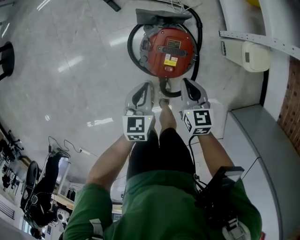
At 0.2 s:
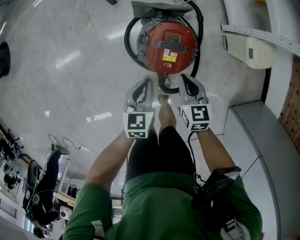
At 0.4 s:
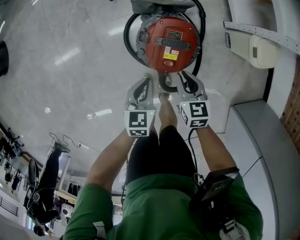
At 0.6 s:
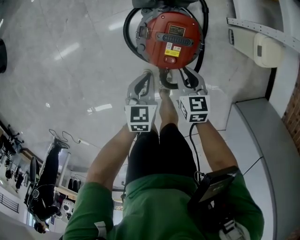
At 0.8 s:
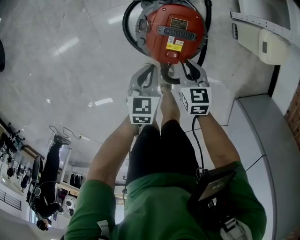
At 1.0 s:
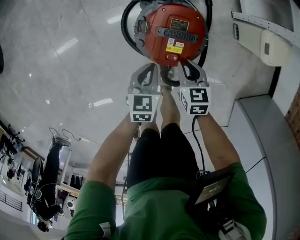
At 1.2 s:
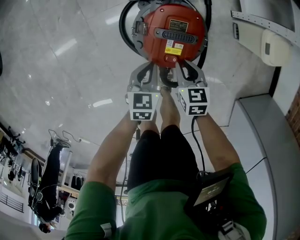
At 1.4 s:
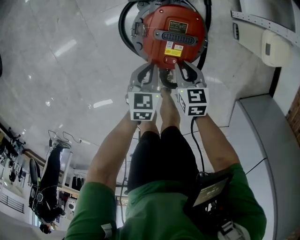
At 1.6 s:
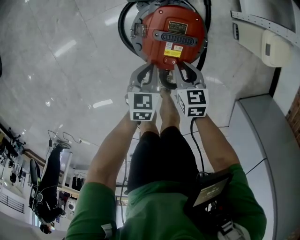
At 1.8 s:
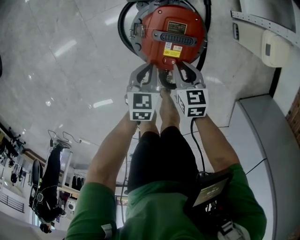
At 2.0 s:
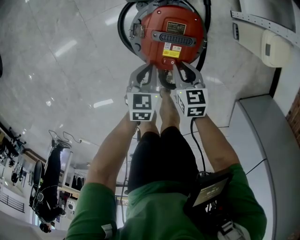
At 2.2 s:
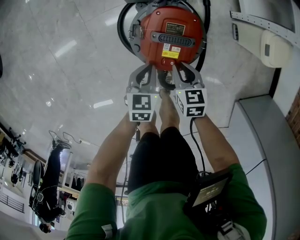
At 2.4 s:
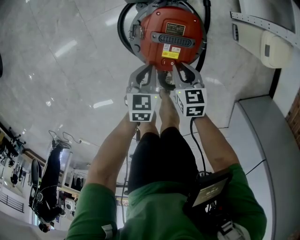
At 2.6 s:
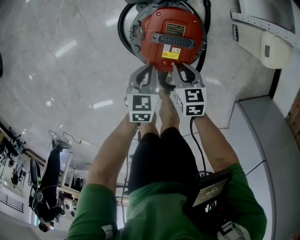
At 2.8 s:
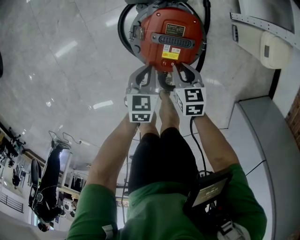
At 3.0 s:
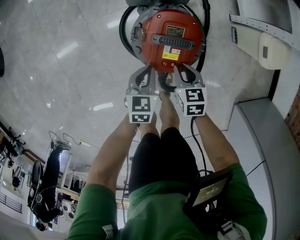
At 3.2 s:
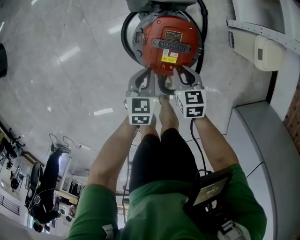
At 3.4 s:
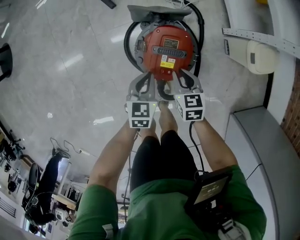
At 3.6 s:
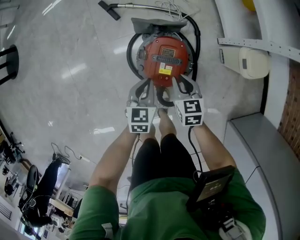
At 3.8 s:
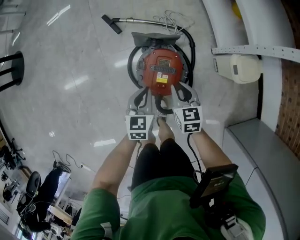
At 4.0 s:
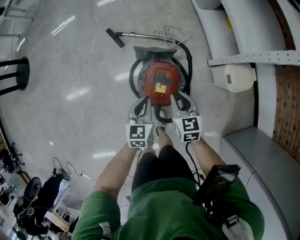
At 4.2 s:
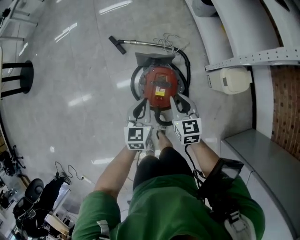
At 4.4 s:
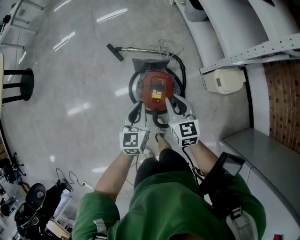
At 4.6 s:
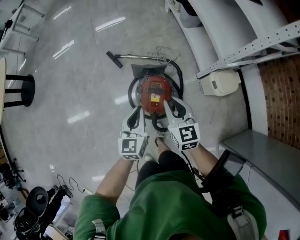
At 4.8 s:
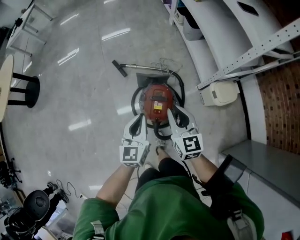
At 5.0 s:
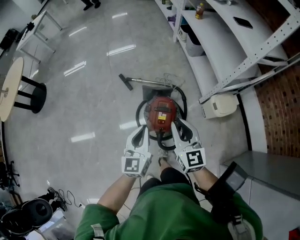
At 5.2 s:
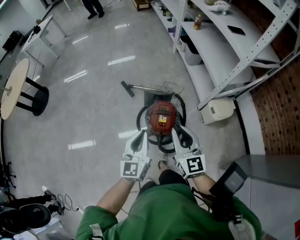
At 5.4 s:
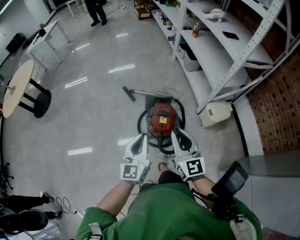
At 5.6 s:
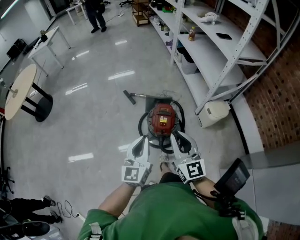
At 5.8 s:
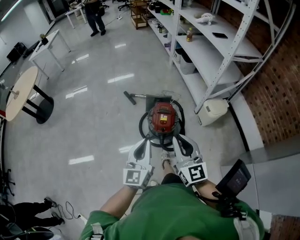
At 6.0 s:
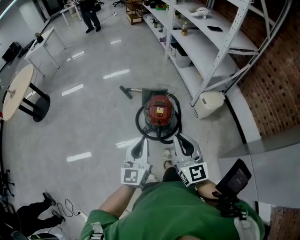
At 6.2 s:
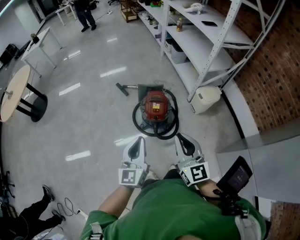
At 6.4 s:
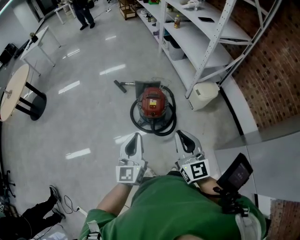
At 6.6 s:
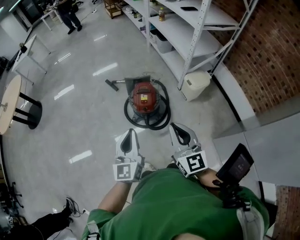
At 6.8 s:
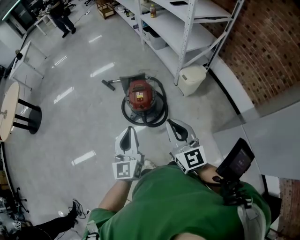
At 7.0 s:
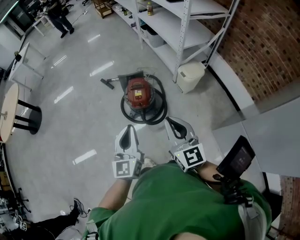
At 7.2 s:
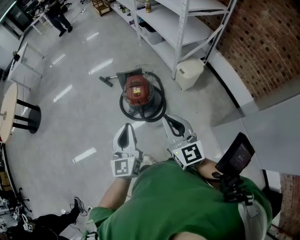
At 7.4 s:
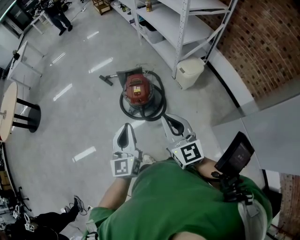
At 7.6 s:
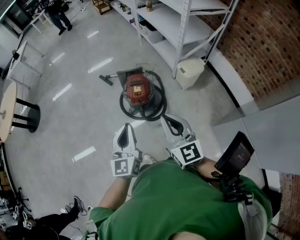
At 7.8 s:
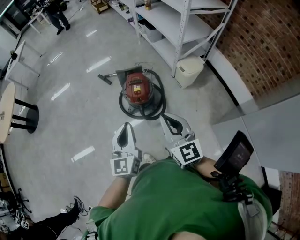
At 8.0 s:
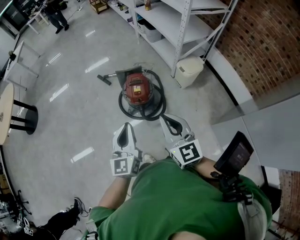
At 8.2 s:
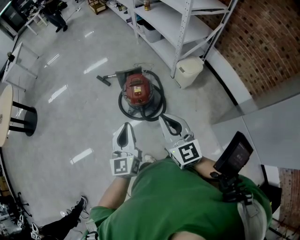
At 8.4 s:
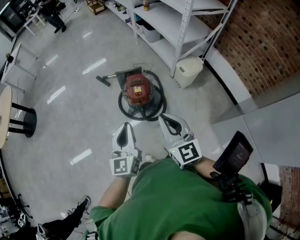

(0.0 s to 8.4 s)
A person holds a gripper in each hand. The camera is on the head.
0.0 s - 1.4 s: The two grippers go approximately 20 cm downward.
1.4 s - 2.8 s: Both grippers stay put.
2.8 s - 4.2 s: Both grippers move upward, roughly 30 cm. The right gripper swivels approximately 30 degrees. The left gripper changes its angle by about 20 degrees.
4.2 s - 5.6 s: Both grippers travel together upward and backward, about 40 cm. The left gripper angles its fingers upward, by approximately 30 degrees, while the right gripper angles its fingers upward, by some 30 degrees.
5.6 s - 7.0 s: Both grippers travel together backward and to the right, approximately 20 cm.
7.0 s - 8.4 s: Both grippers move to the left, roughly 5 cm.

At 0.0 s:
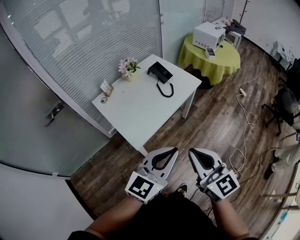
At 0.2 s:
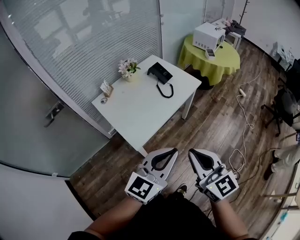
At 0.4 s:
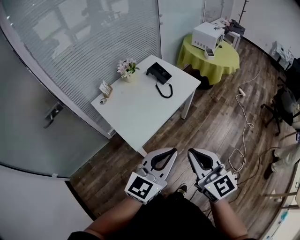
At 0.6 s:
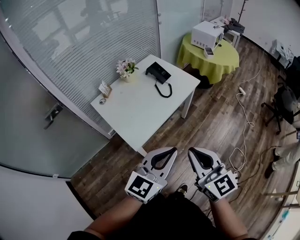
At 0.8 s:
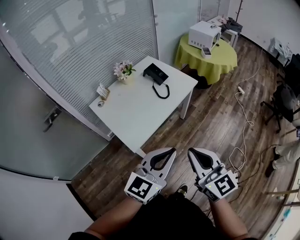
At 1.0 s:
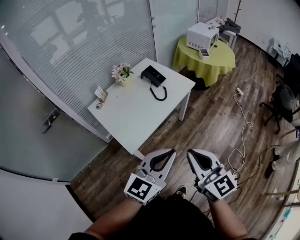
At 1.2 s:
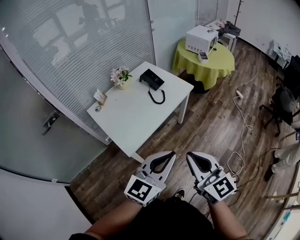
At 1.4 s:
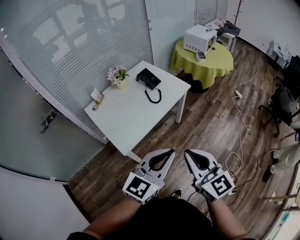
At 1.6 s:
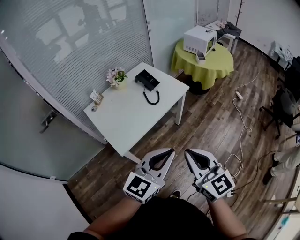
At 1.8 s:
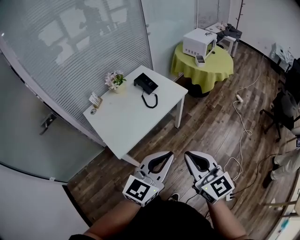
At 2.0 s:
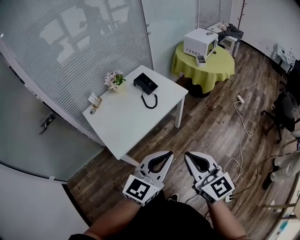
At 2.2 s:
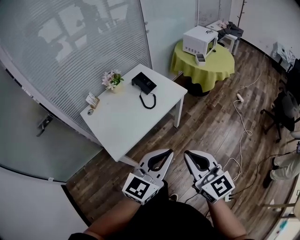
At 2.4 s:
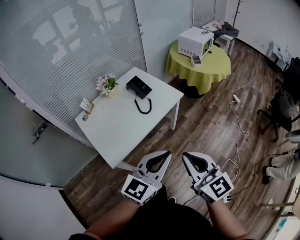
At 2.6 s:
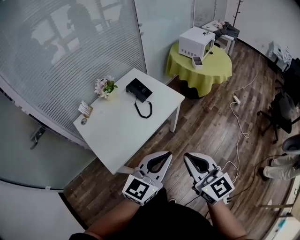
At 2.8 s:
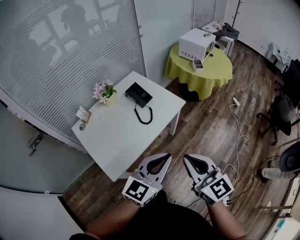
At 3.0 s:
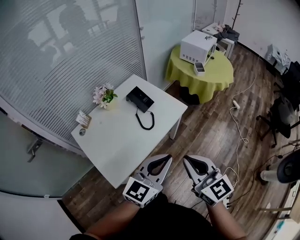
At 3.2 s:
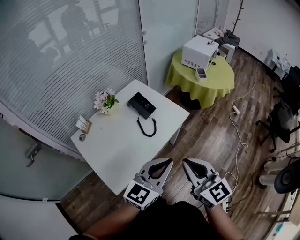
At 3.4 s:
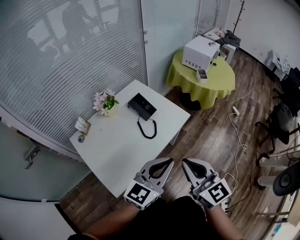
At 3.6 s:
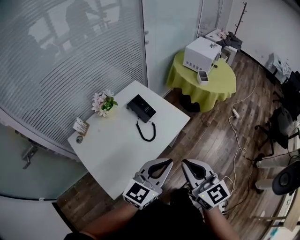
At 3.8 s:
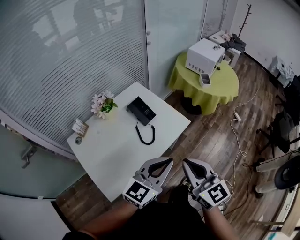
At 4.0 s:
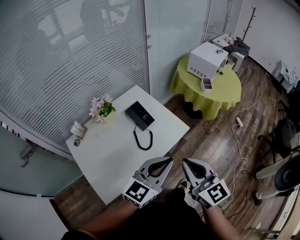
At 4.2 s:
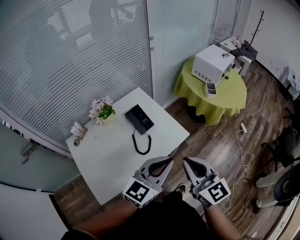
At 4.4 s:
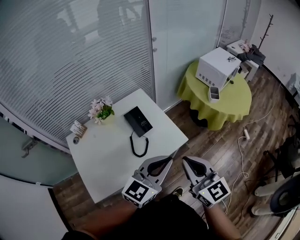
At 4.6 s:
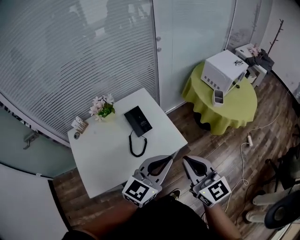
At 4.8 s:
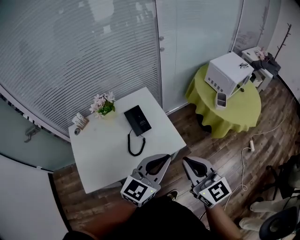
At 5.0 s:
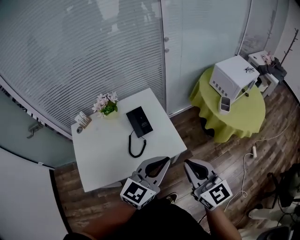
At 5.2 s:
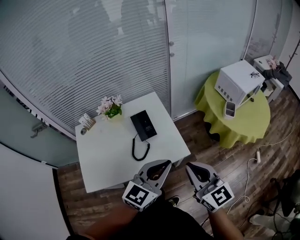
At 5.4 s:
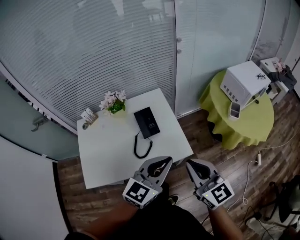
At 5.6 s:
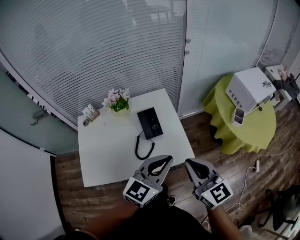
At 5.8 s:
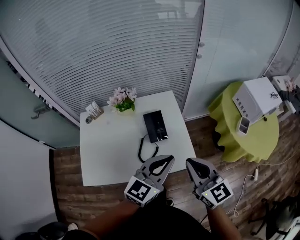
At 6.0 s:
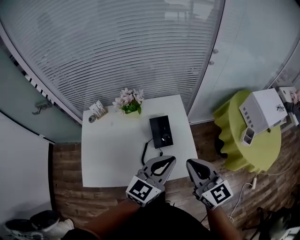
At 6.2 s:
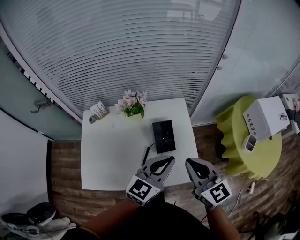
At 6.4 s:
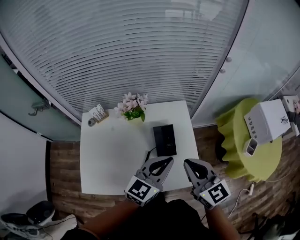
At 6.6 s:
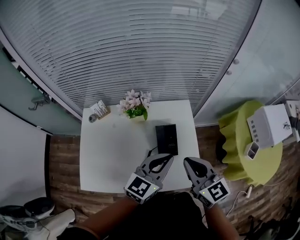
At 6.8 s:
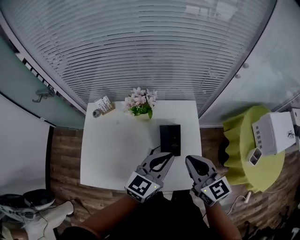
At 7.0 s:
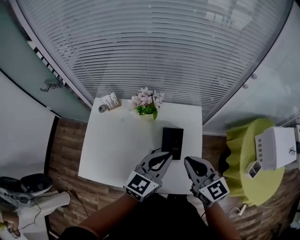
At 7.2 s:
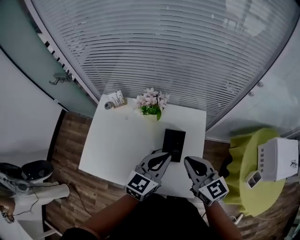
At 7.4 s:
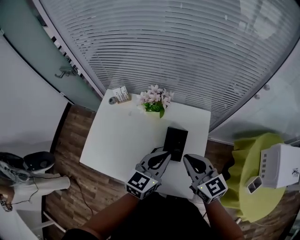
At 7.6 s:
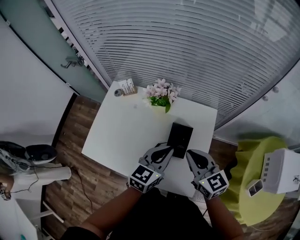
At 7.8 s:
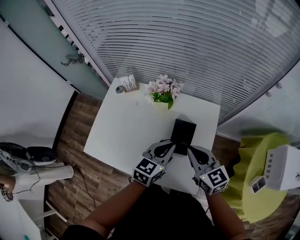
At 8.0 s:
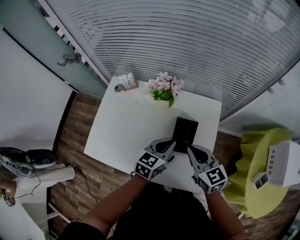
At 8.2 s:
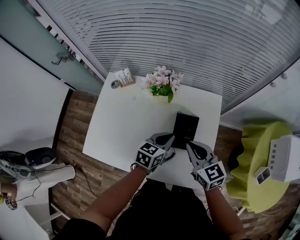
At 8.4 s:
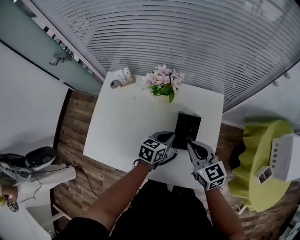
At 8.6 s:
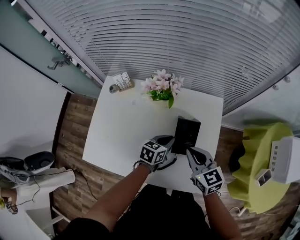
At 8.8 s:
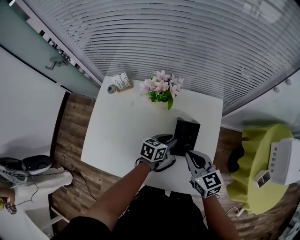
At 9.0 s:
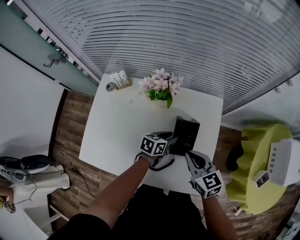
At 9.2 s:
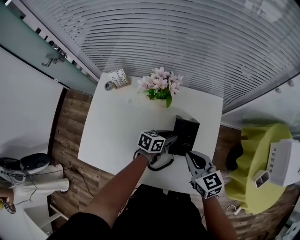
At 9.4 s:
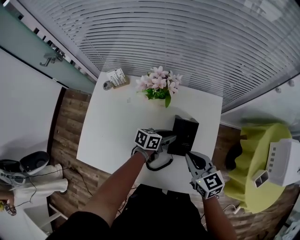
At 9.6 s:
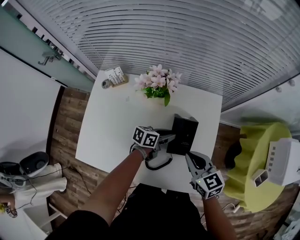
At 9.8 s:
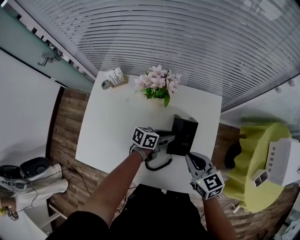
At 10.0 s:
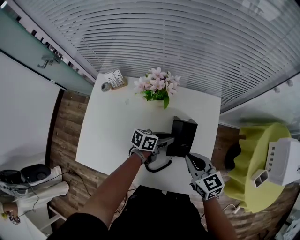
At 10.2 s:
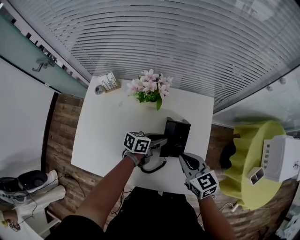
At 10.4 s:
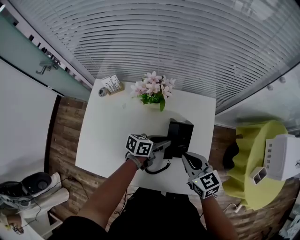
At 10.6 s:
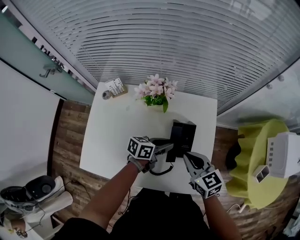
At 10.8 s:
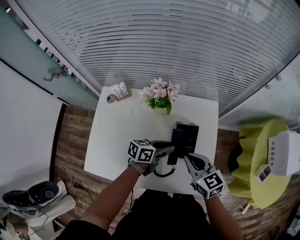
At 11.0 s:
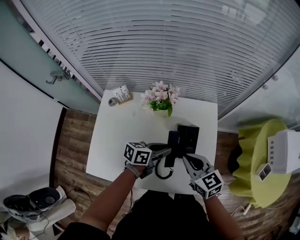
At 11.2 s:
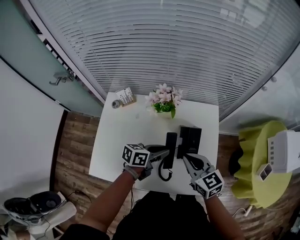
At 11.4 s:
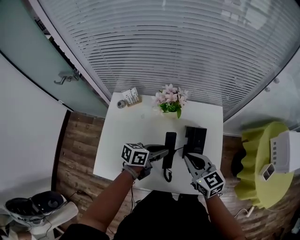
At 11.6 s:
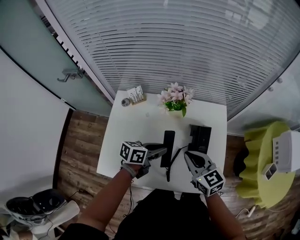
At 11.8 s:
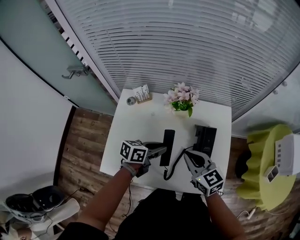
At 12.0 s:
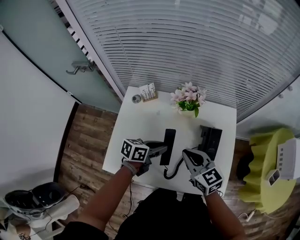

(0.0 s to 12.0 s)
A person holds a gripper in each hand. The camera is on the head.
0.0 s - 1.6 s: The two grippers go about 10 cm to the right.
1.6 s - 3.0 s: Both grippers move forward, about 20 cm.
3.0 s - 4.4 s: Both grippers travel together forward, approximately 25 cm.
4.4 s - 6.0 s: The right gripper moves some 20 cm, and swivels roughly 30 degrees, while the left gripper ends up some 15 cm from where it was, and swivels some 30 degrees.
6.0 s - 7.6 s: The left gripper ends up some 15 cm from where it was, and rotates approximately 30 degrees; the right gripper changes place by about 20 cm, and changes its angle by some 30 degrees.
7.6 s - 9.0 s: The right gripper heads downward, covering roughly 10 cm; the left gripper shifts approximately 25 cm downward, turns by some 40 degrees, and opens its fingers.
9.0 s - 10.4 s: The grippers stay close to where they were, moving slightly.
10.4 s - 12.0 s: The right gripper goes roughly 15 cm to the left; the left gripper shifts approximately 20 cm to the left and backward.

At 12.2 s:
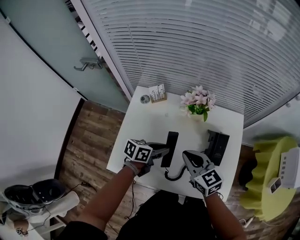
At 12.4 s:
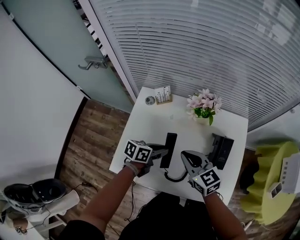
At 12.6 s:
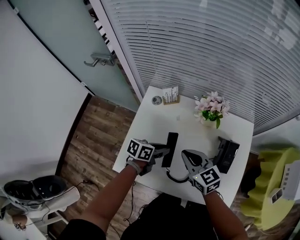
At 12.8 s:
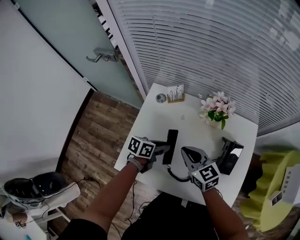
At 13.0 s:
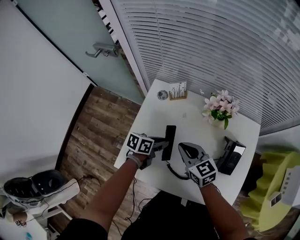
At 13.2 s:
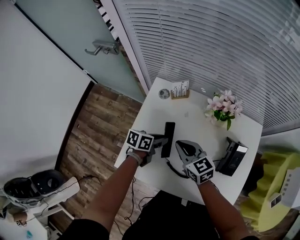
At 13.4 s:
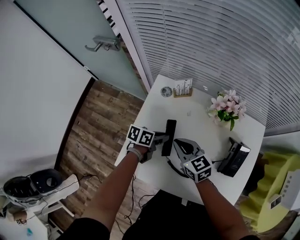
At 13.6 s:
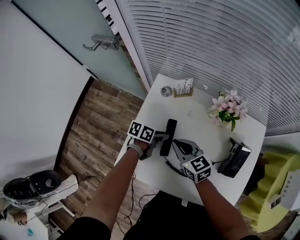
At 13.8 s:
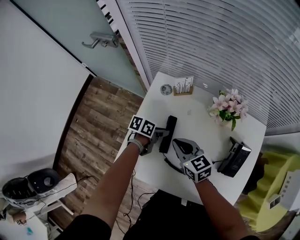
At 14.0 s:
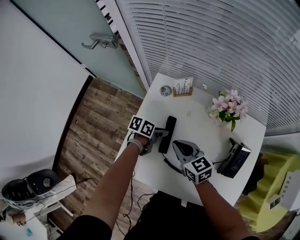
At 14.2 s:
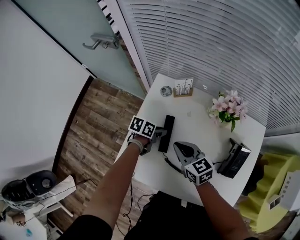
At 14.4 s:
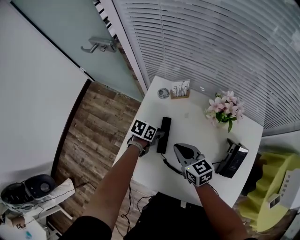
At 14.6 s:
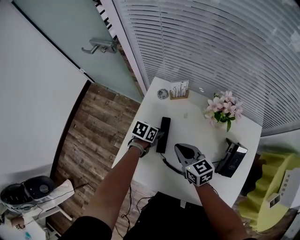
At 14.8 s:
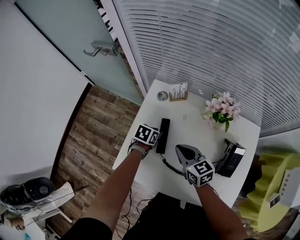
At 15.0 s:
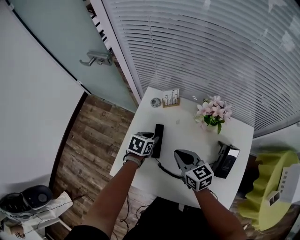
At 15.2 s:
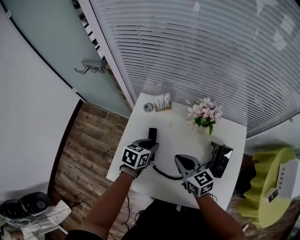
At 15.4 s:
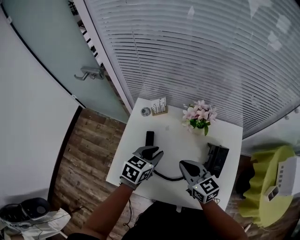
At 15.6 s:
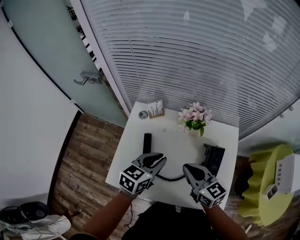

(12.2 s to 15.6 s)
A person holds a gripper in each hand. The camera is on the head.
12.2 s - 13.8 s: The left gripper shifts roughly 20 cm to the left, downward and forward, and changes its angle by some 20 degrees, while the right gripper moves to the left and downward, approximately 20 cm.
13.8 s - 15.6 s: The right gripper goes about 20 cm to the right, upward and backward. Meanwhile the left gripper shifts approximately 25 cm upward and to the right, and rotates around the line of its fingers by roughly 40 degrees, clockwise from behind.
